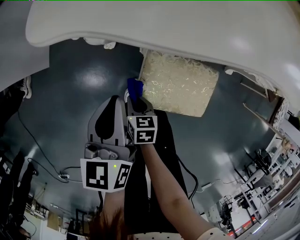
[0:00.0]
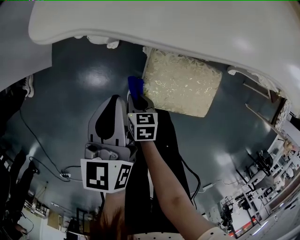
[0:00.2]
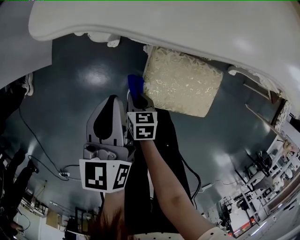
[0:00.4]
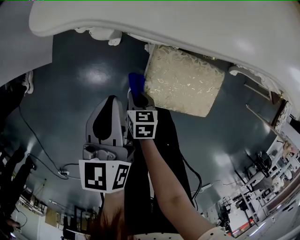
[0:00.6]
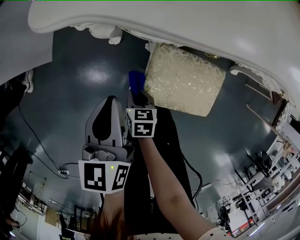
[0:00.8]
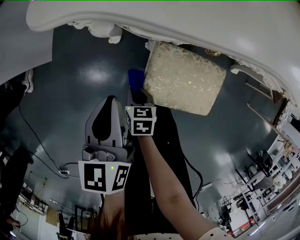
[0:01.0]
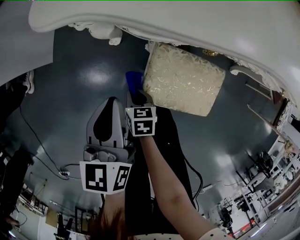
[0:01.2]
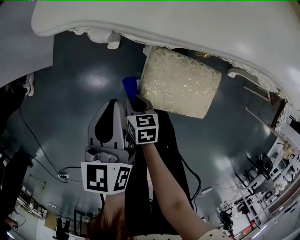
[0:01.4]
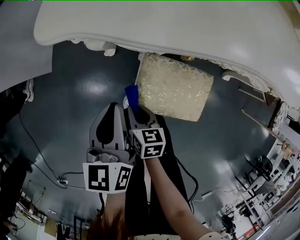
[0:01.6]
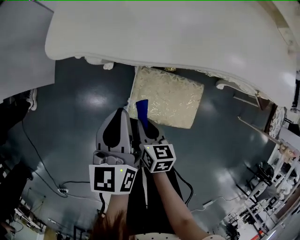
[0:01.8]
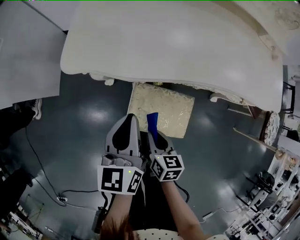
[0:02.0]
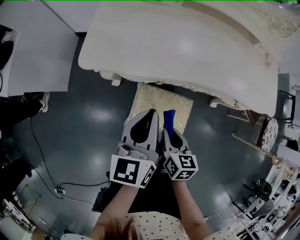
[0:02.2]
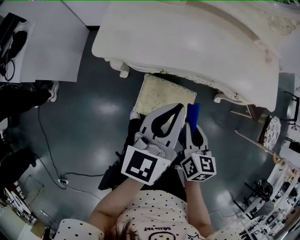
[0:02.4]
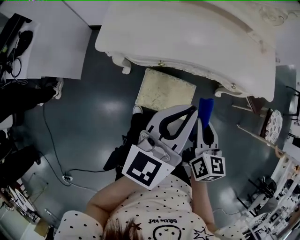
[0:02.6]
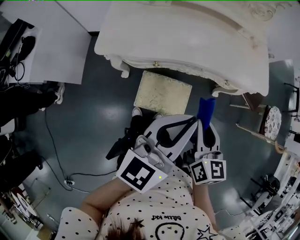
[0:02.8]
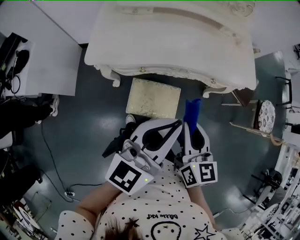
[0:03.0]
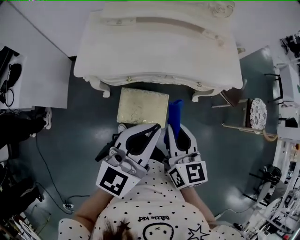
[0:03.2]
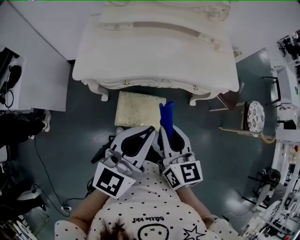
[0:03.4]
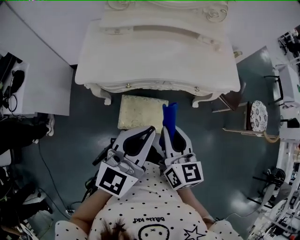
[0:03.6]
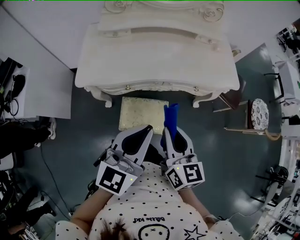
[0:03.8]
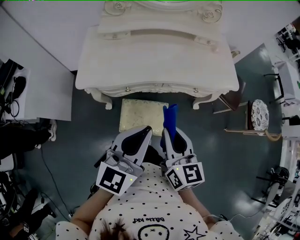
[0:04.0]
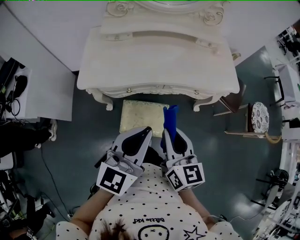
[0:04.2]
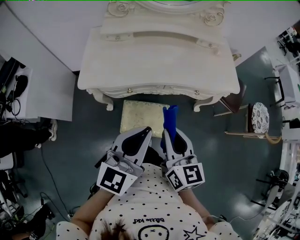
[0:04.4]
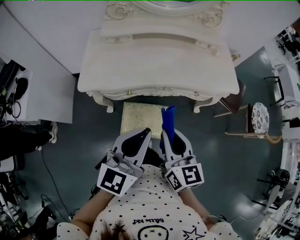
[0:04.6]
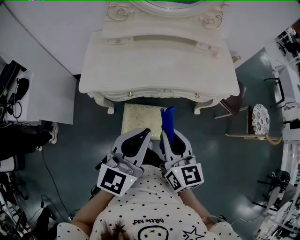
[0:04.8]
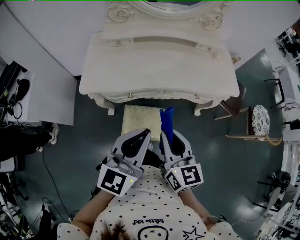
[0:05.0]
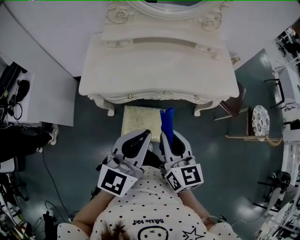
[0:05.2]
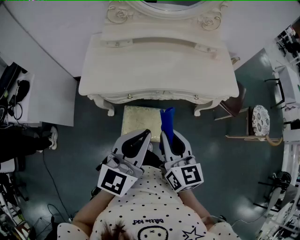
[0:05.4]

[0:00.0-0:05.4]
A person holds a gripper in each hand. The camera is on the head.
0:00.0 to 0:01.4: The grippers stay close to where they were, moving slightly.
0:01.4 to 0:02.8: Both grippers move upward, approximately 40 cm. The left gripper changes its angle by roughly 50 degrees. The right gripper swivels roughly 40 degrees.
0:02.8 to 0:04.0: The right gripper moves upward, approximately 5 cm.
0:04.0 to 0:05.4: The grippers stay close to where they were, moving slightly.

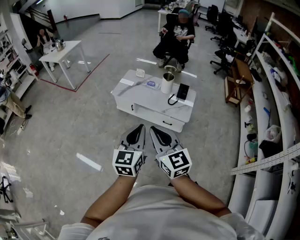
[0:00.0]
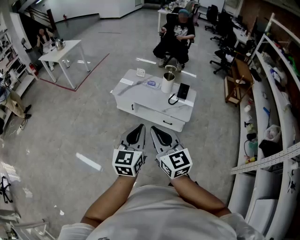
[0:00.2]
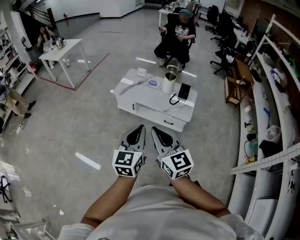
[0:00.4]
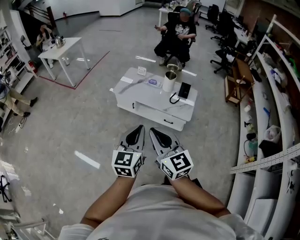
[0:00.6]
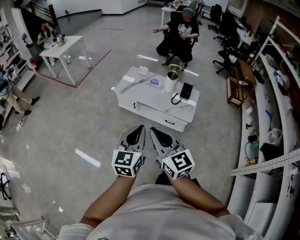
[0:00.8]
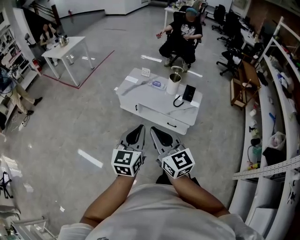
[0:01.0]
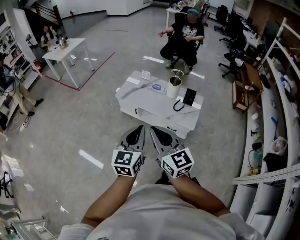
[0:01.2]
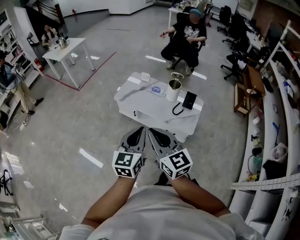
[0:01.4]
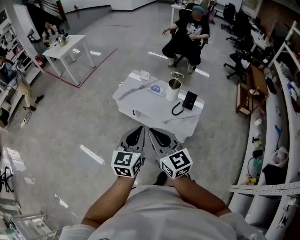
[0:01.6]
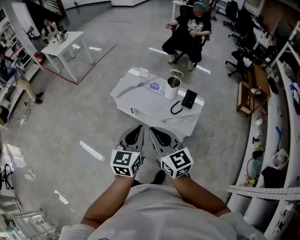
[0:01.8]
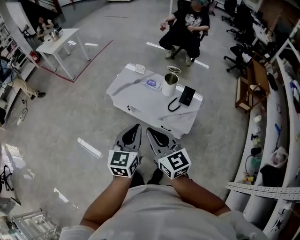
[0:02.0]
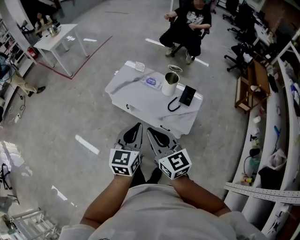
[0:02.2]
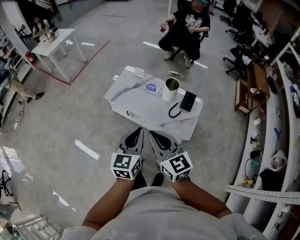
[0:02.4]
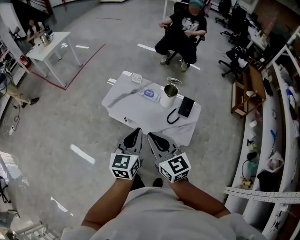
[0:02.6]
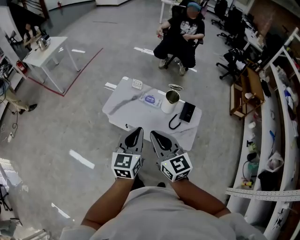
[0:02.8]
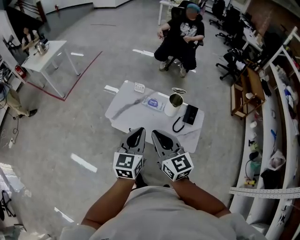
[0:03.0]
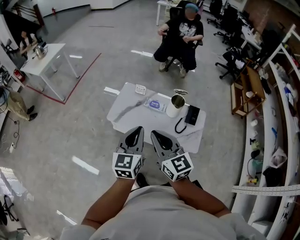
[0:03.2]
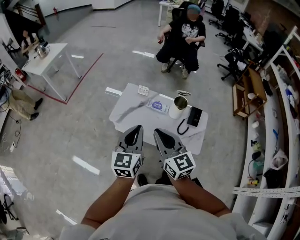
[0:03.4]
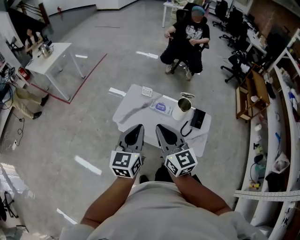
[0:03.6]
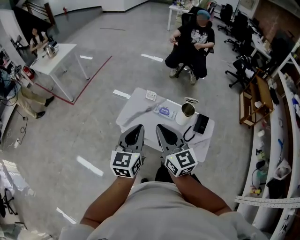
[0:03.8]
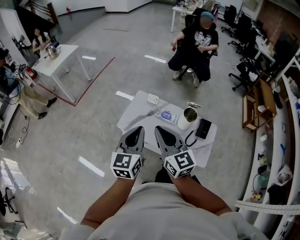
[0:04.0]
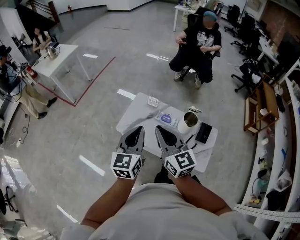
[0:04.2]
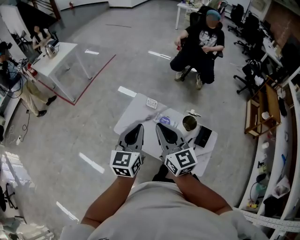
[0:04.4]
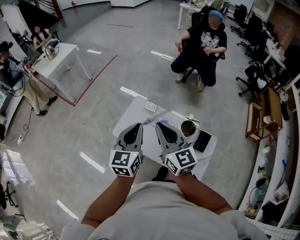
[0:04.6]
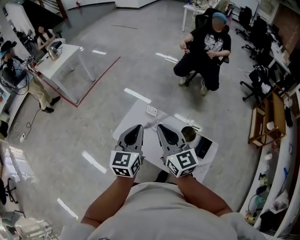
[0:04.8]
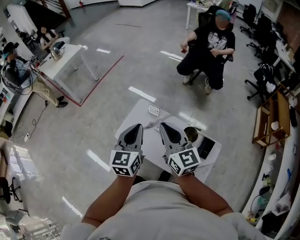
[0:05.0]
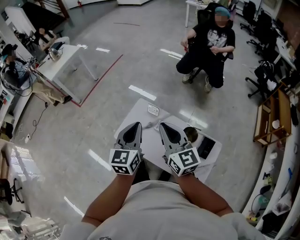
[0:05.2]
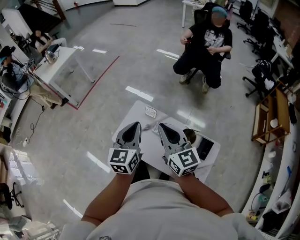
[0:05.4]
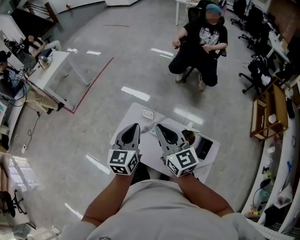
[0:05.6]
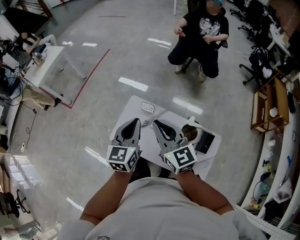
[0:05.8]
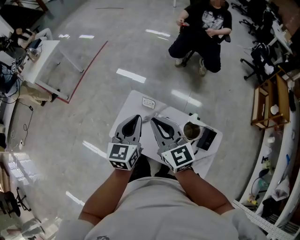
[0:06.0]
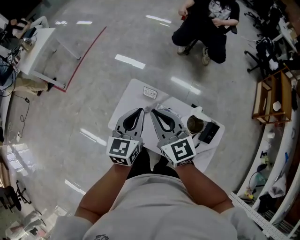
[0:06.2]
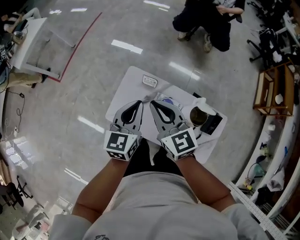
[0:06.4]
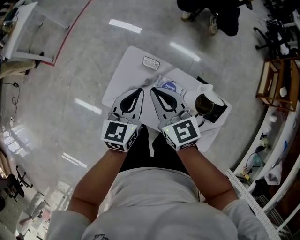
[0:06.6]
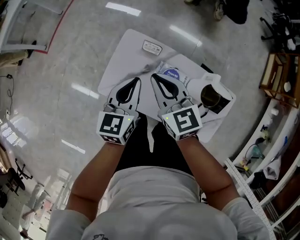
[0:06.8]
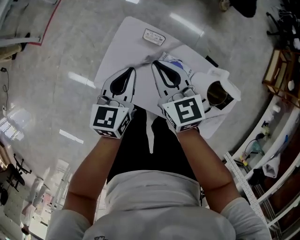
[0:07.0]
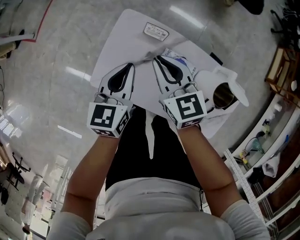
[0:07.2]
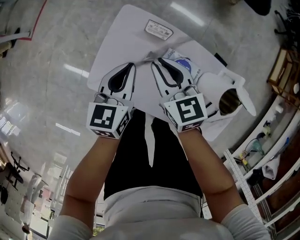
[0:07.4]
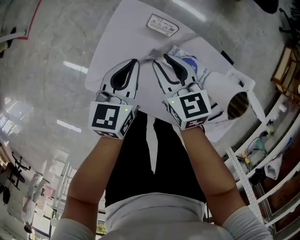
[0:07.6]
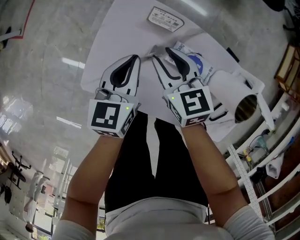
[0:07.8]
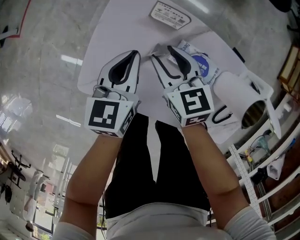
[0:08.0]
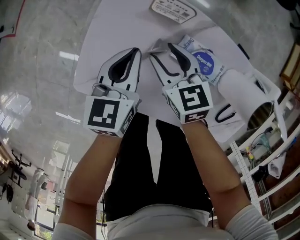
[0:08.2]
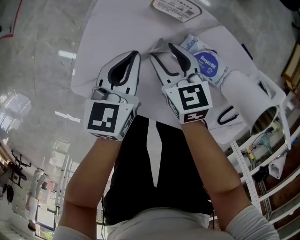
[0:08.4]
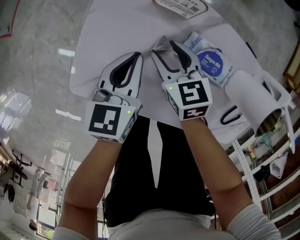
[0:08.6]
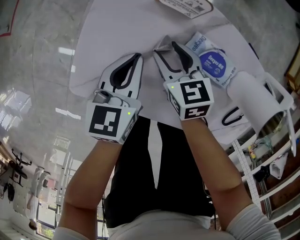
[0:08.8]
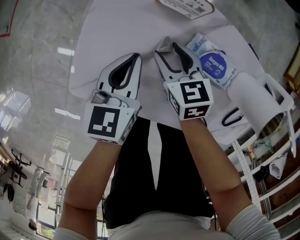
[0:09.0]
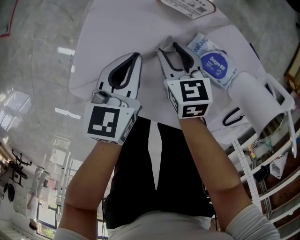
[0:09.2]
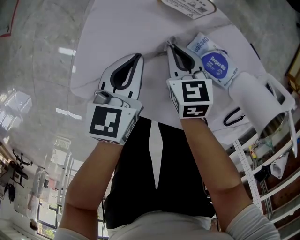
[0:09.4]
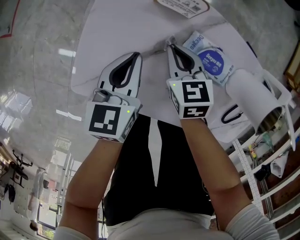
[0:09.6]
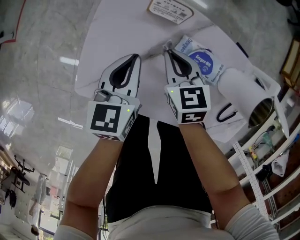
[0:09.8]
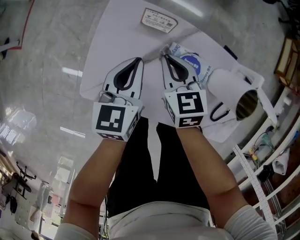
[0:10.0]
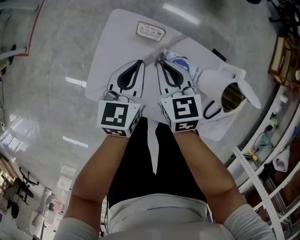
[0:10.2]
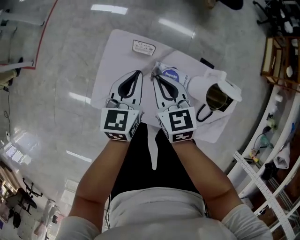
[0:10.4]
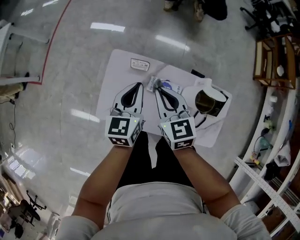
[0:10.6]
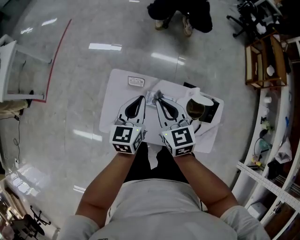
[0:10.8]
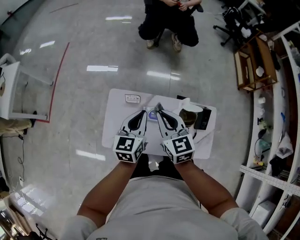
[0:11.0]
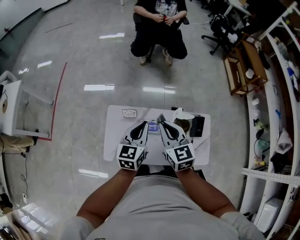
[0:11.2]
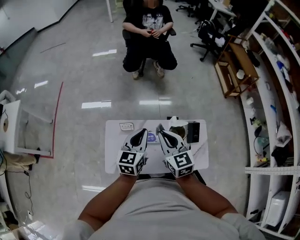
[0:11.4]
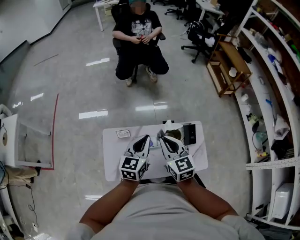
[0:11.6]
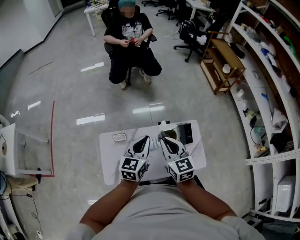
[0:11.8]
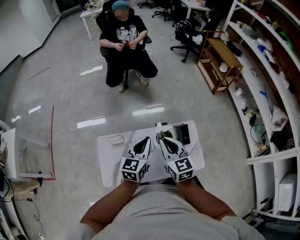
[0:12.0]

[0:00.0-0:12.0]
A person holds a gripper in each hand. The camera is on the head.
0:00.0 to 0:01.6: The left gripper moves forward and to the right, some 20 cm, while the right gripper moves forward, about 15 cm.
0:01.6 to 0:03.0: Both grippers move forward, about 25 cm.
0:03.0 to 0:04.4: Both grippers travel together forward, some 20 cm.
0:04.4 to 0:06.0: Both grippers travel together forward, some 20 cm.
0:06.0 to 0:07.6: Both grippers travel together downward, some 40 cm. The right gripper turns by roughly 30 degrees, and opens up.
0:07.6 to 0:09.0: Both grippers move downward, about 20 cm. The right gripper opens up.
0:09.0 to 0:10.4: The two grippers go about 30 cm upward. The right gripper closes up.
0:10.4 to 0:12.0: The grippers both shift upward by some 25 cm. The left gripper swivels about 30 degrees, while the right gripper turns by some 30 degrees.

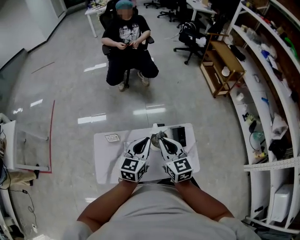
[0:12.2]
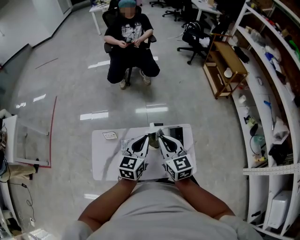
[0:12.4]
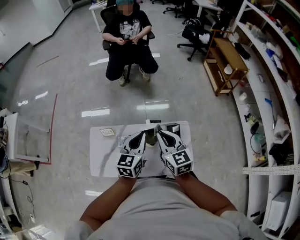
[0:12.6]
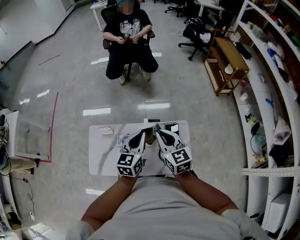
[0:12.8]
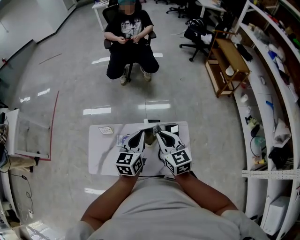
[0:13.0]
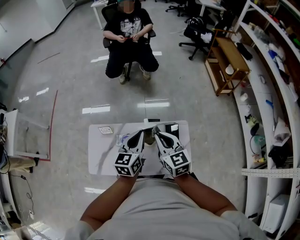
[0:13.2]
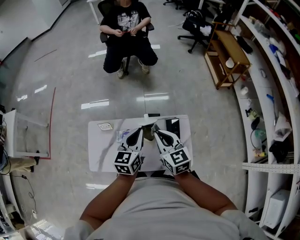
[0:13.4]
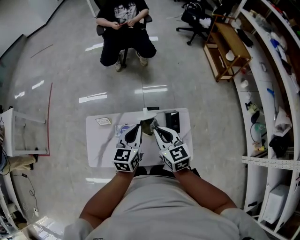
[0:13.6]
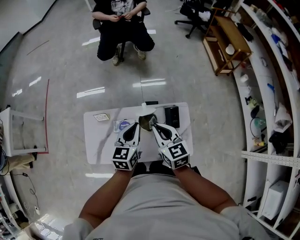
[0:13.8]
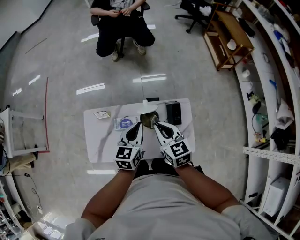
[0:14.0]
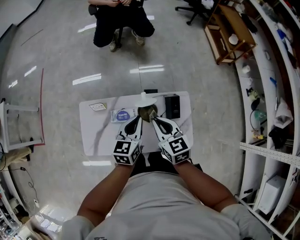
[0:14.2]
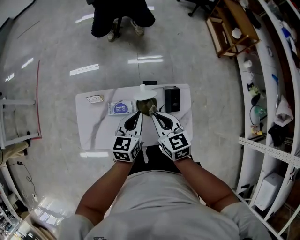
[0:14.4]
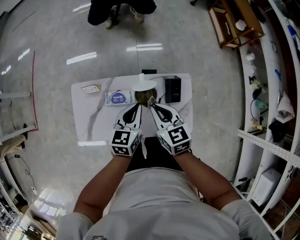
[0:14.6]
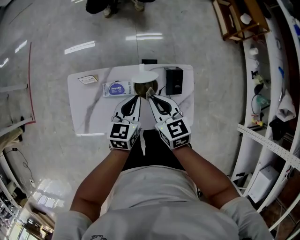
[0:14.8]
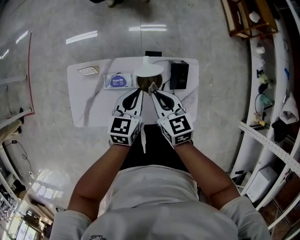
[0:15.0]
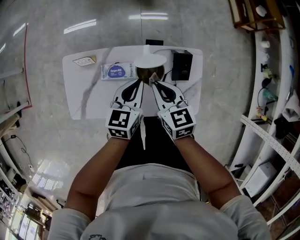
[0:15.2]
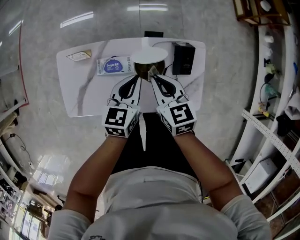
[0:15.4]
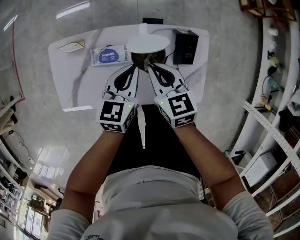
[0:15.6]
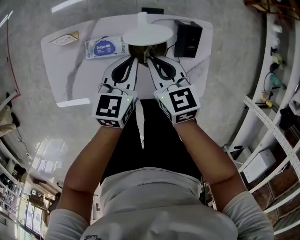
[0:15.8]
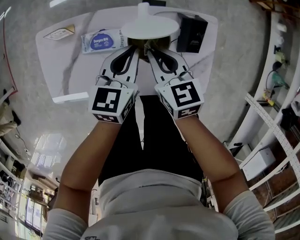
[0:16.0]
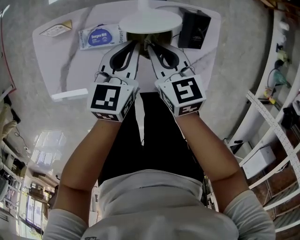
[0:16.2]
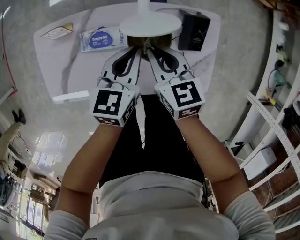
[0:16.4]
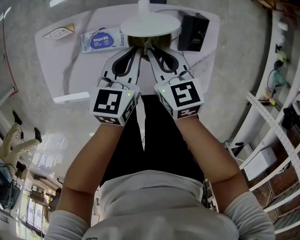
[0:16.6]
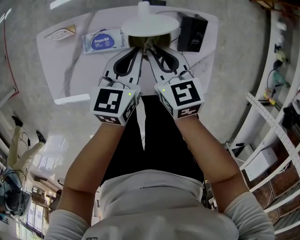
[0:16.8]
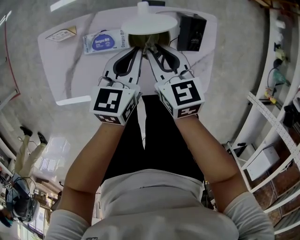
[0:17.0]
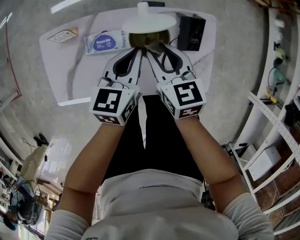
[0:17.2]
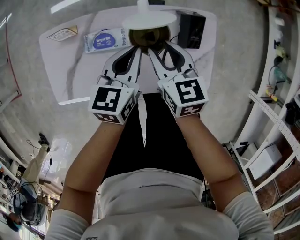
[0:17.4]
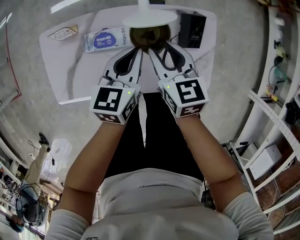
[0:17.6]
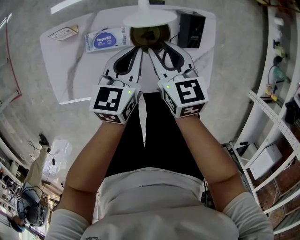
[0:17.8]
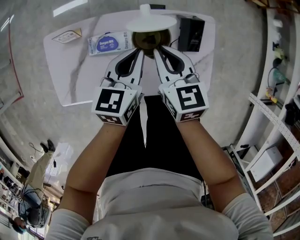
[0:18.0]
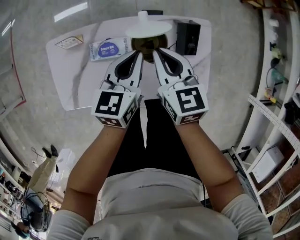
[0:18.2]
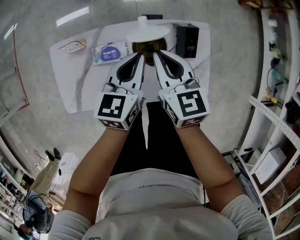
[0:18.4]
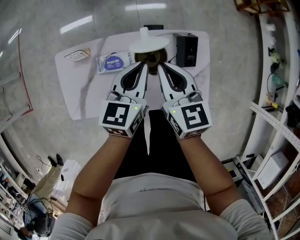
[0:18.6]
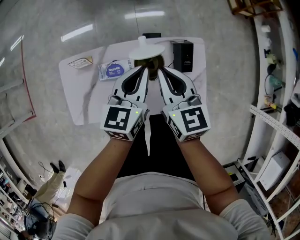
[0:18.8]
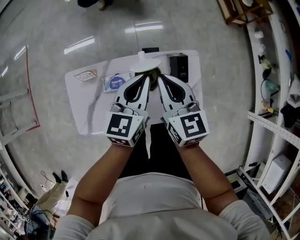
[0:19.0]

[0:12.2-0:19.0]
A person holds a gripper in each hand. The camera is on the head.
0:12.2 to 0:13.6: The right gripper heads to the right, covering some 5 cm. The left gripper changes place by approximately 5 cm.
0:13.6 to 0:15.0: The grippers both shift downward by approximately 15 cm.
0:15.0 to 0:16.2: The grippers both shift downward by approximately 15 cm.
0:16.2 to 0:17.6: The right gripper opens.
0:17.6 to 0:19.0: Both grippers travel together upward, some 20 cm. The right gripper closes its fingers.
